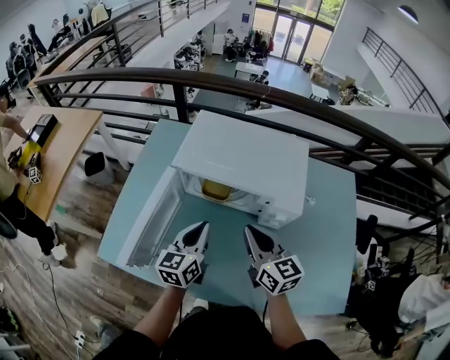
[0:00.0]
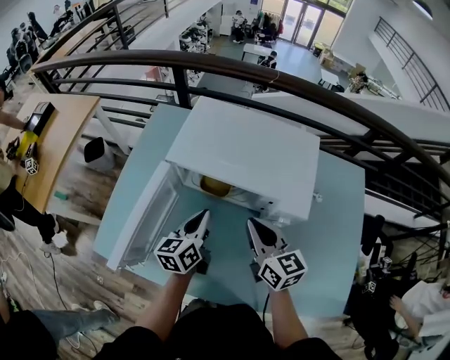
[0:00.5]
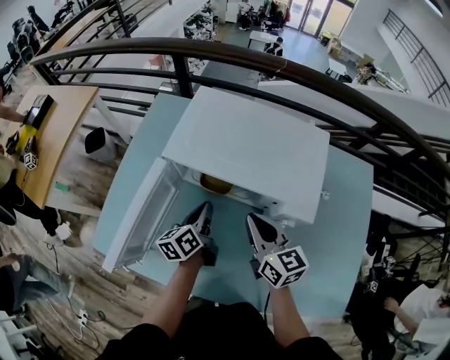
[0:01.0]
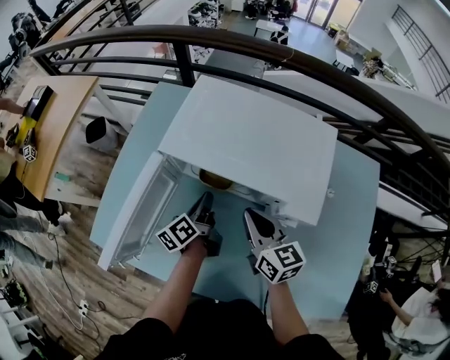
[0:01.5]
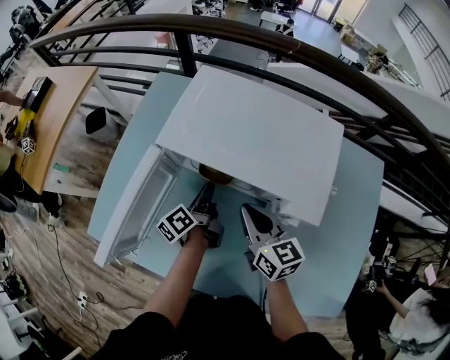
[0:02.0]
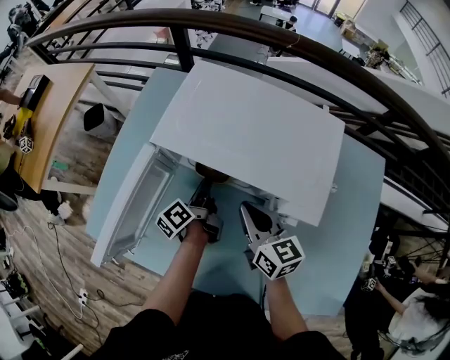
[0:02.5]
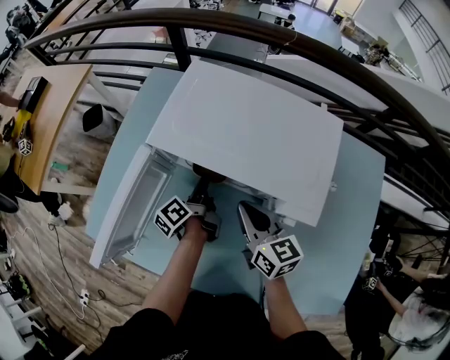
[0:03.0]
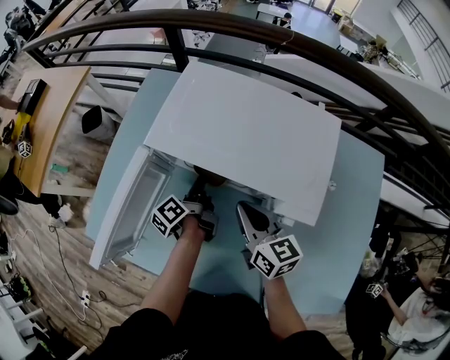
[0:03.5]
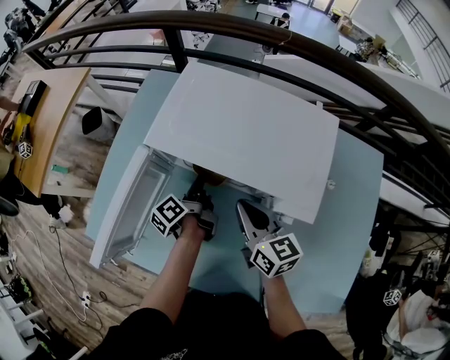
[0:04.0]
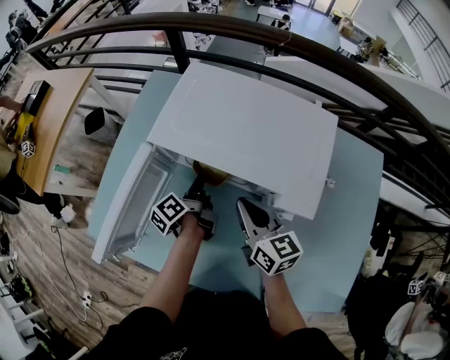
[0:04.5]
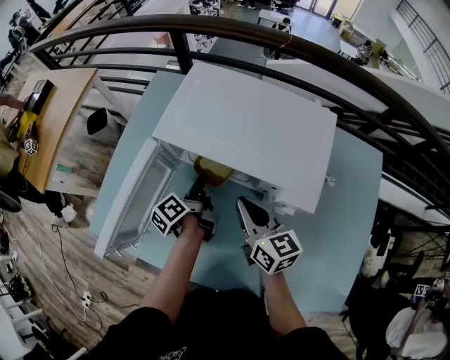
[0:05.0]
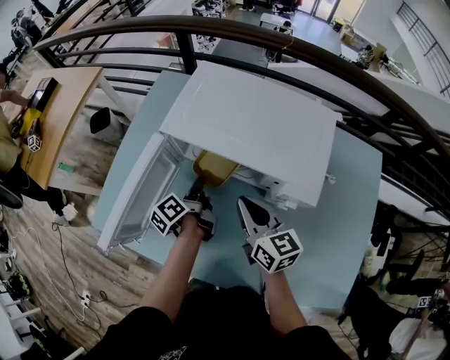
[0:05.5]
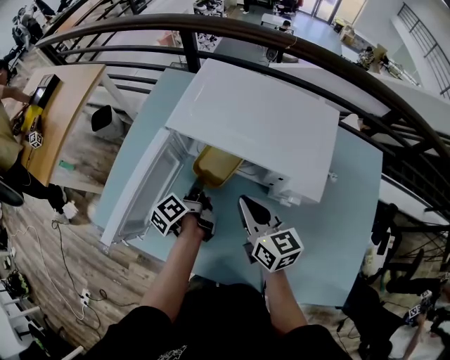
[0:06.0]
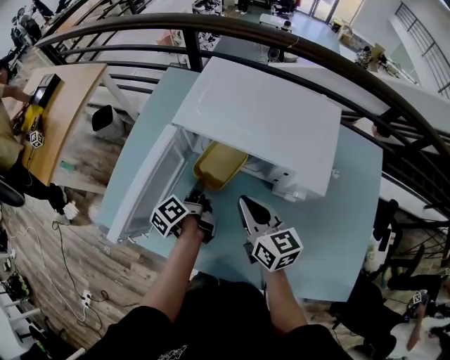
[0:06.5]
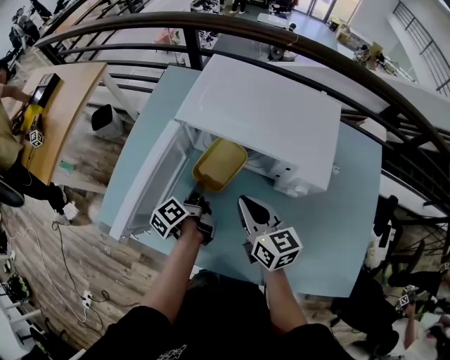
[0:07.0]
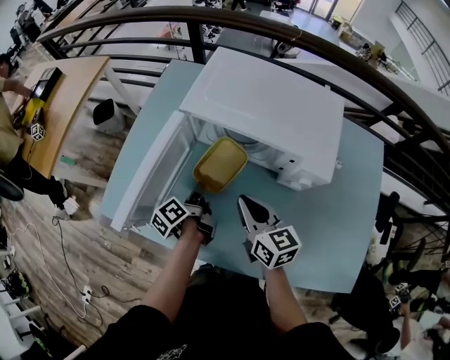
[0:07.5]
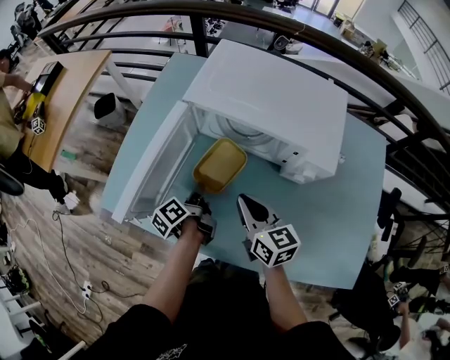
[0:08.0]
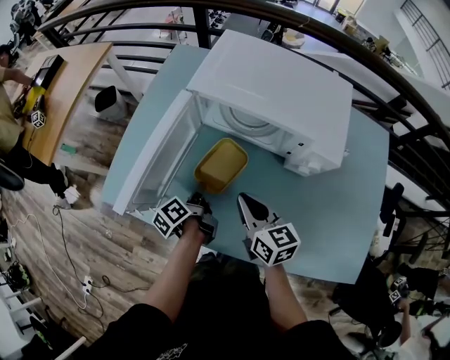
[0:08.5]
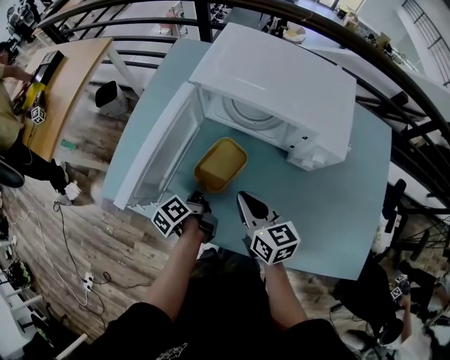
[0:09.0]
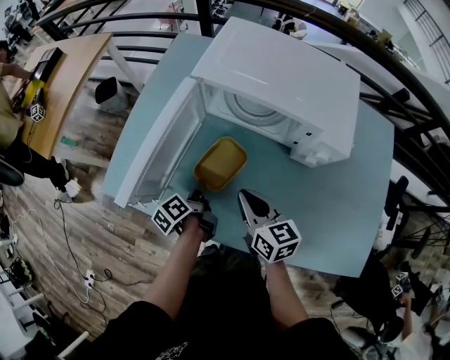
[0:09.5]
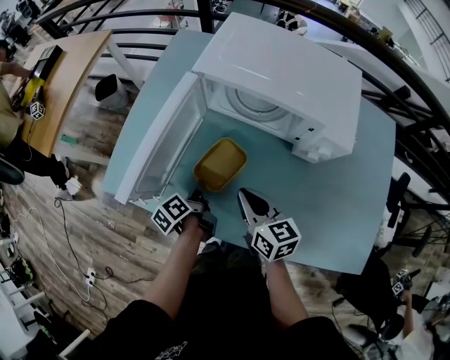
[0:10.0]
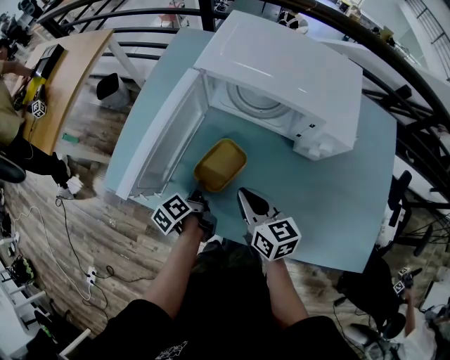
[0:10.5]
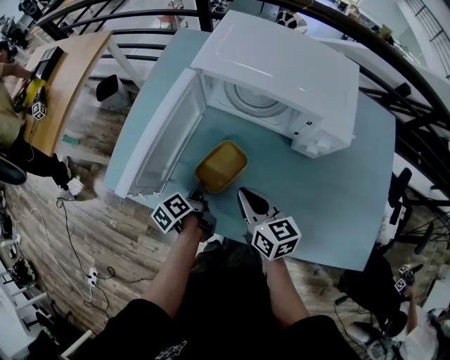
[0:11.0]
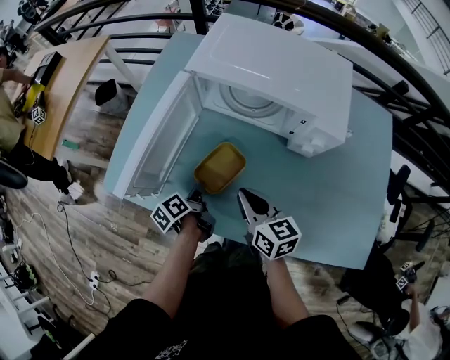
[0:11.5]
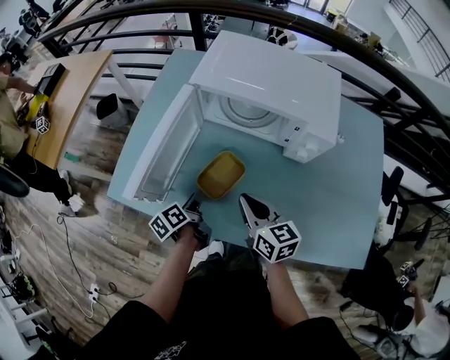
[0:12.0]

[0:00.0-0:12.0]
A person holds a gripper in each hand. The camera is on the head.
0:00.0 to 0:02.0: The grippers both shift downward and forward by about 15 cm. The left gripper rolls counterclockwise, seen from behind, by about 50 degrees.
0:02.0 to 0:04.0: The grippers make only small movements.
0:04.0 to 0:06.0: The left gripper moves backward, roughly 5 cm. The right gripper ends up about 5 cm from where it was.
0:06.0 to 0:08.0: The grippers both shift backward and to the left by roughly 10 cm.
0:08.0 to 0:10.0: The right gripper moves approximately 5 cm. Meanwhile the left gripper heads backward, covering approximately 5 cm.
0:10.0 to 0:12.0: The grippers make only small movements.

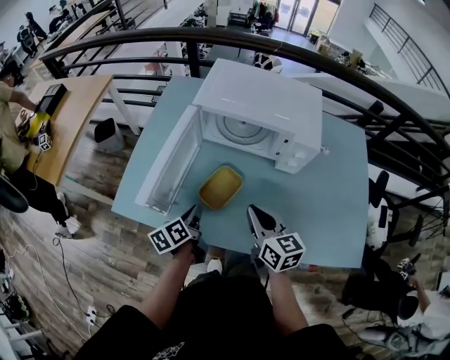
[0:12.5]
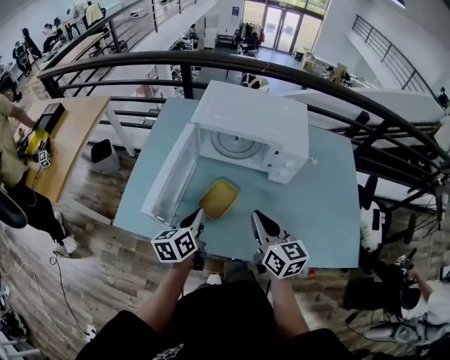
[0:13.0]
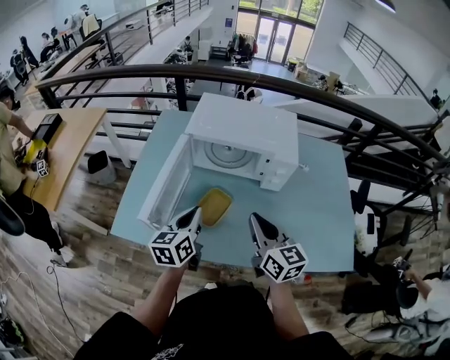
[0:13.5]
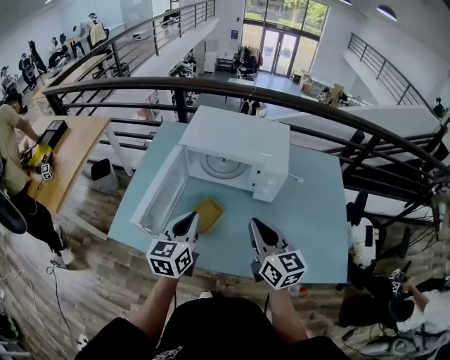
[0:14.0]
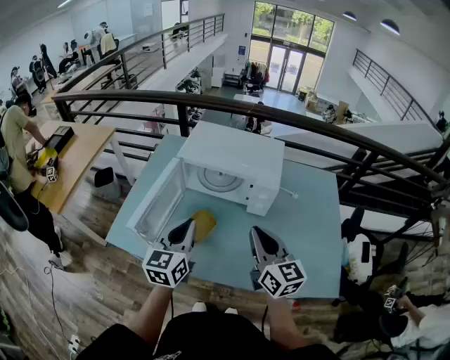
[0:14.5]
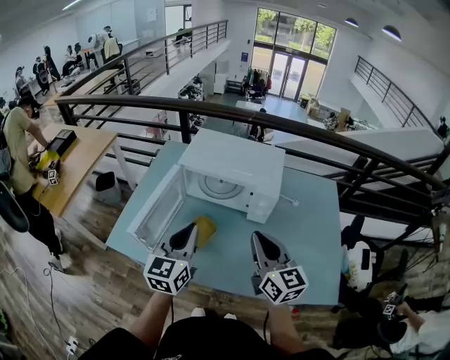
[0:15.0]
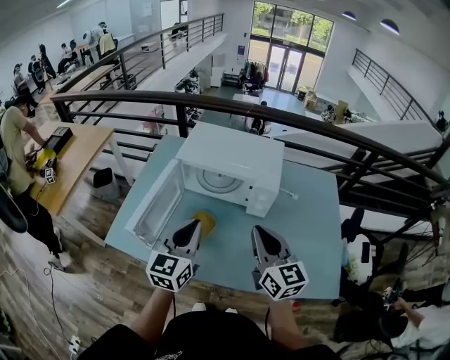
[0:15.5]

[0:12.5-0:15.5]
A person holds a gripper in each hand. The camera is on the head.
0:12.5 to 0:14.0: The left gripper heads upward, covering some 20 cm, and twists approximately 40 degrees clockwise, seen from behind. Meanwhile the right gripper shifts roughly 15 cm upward and to the right.
0:14.0 to 0:15.5: The two grippers go roughly 5 cm upward.

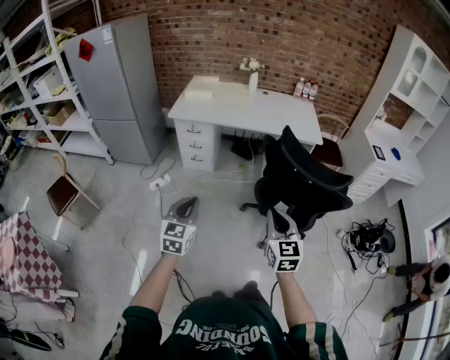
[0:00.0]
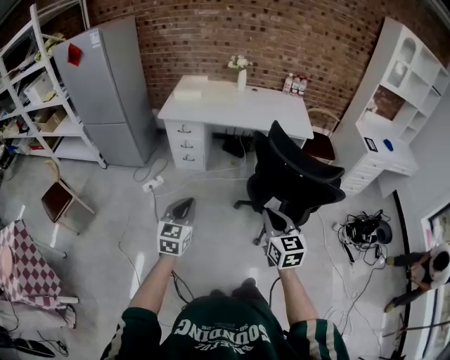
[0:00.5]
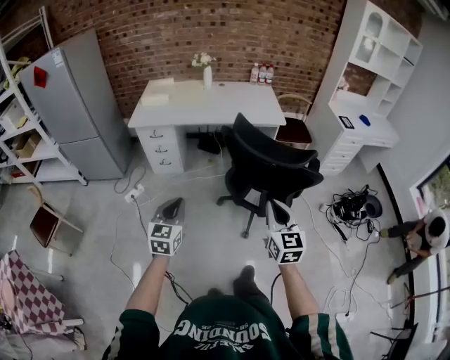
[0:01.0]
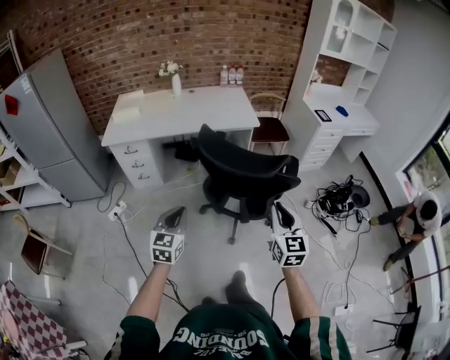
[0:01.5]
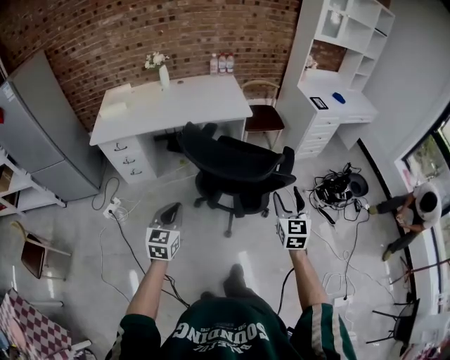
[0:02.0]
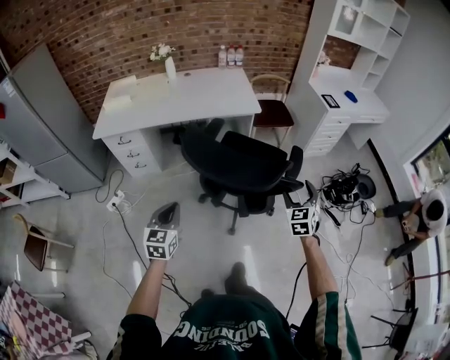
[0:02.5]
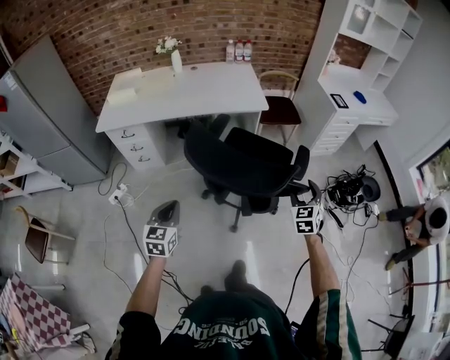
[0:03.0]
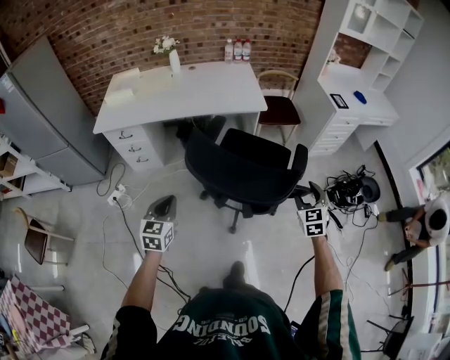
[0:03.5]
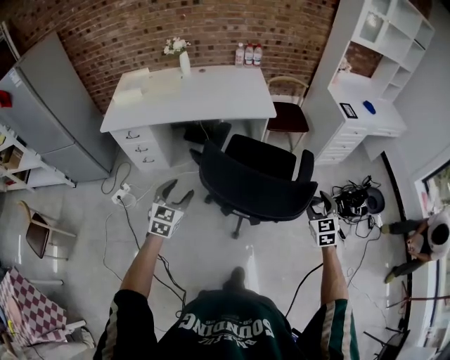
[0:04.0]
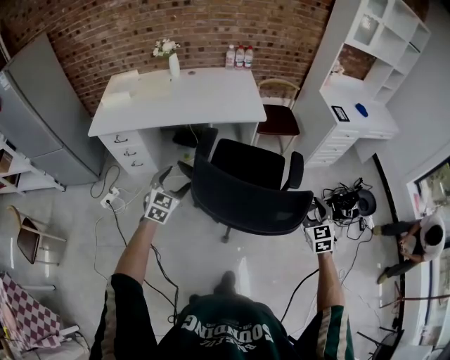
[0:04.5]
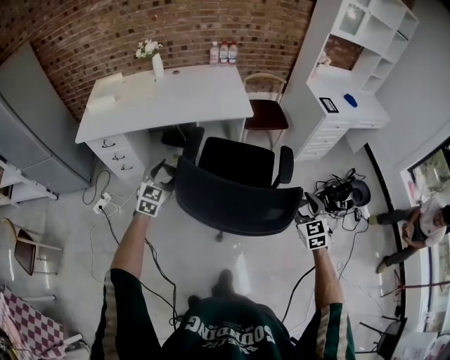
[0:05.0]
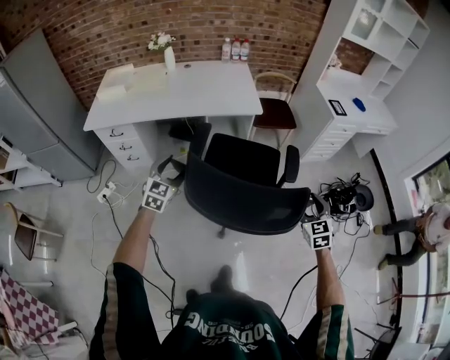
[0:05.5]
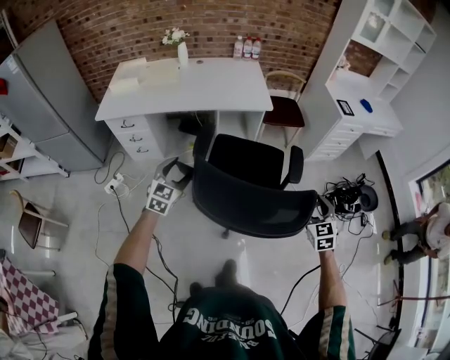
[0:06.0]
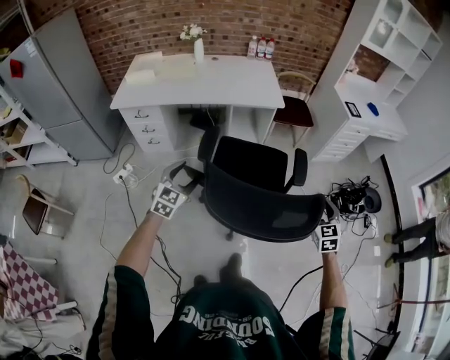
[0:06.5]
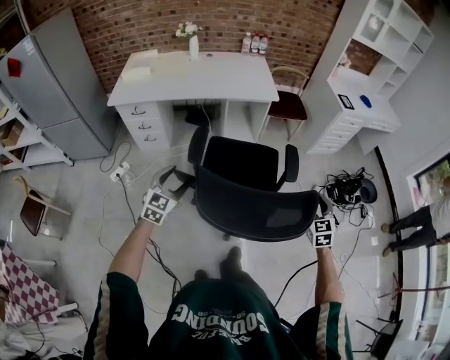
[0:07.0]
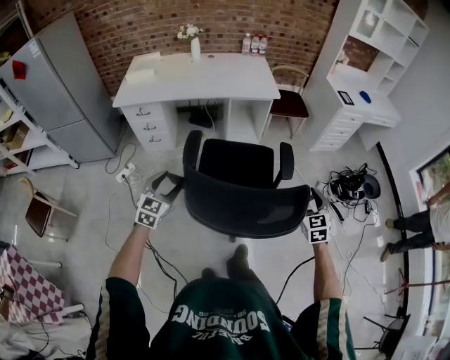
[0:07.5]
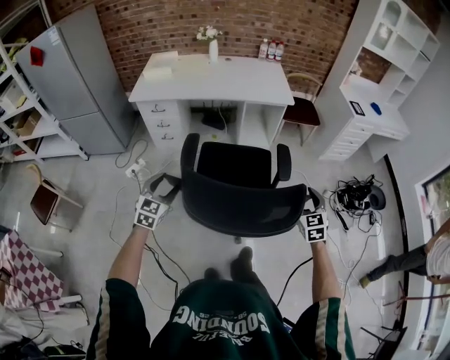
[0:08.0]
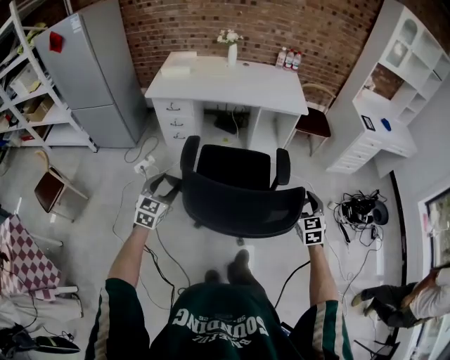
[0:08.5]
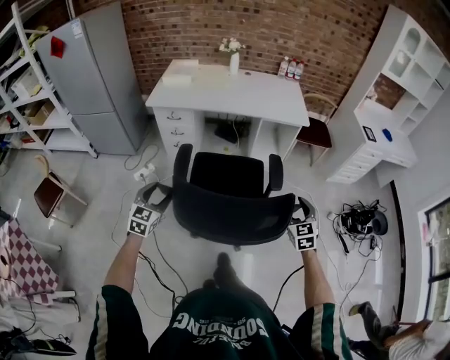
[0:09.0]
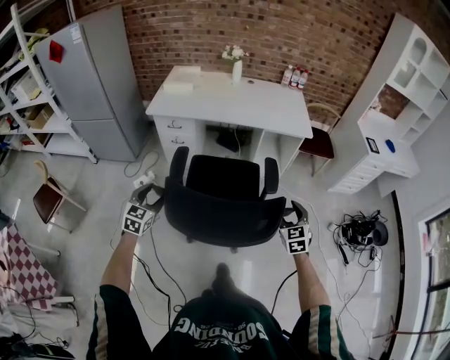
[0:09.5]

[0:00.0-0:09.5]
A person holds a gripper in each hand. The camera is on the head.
0:00.0 to 0:02.0: The right gripper is displaced to the right by approximately 30 cm, turns by approximately 30 degrees, and opens its fingers. The left gripper goes roughly 25 cm to the right and forward.
0:02.0 to 0:04.0: The left gripper travels forward by roughly 15 cm, and opens up. The right gripper heads forward, downward and to the right, covering some 20 cm.
0:04.0 to 0:05.5: The left gripper goes roughly 10 cm forward.
0:05.5 to 0:07.5: The right gripper is displaced backward and to the left by some 20 cm. The left gripper moves backward, some 25 cm.
0:07.5 to 0:09.5: The left gripper moves to the left, some 20 cm. The right gripper heads to the left and forward, covering about 20 cm.

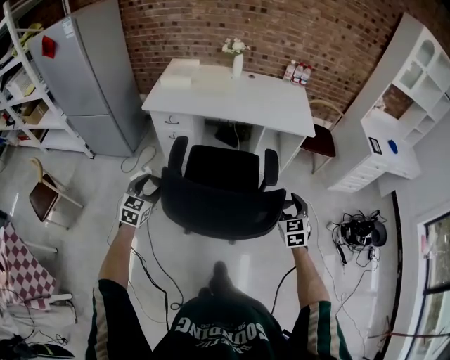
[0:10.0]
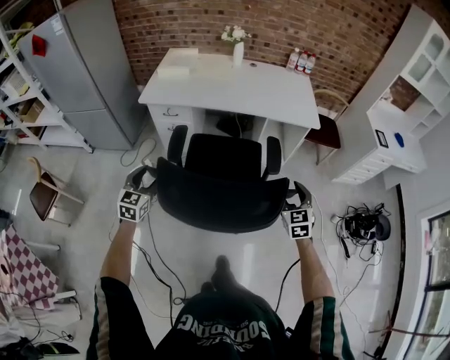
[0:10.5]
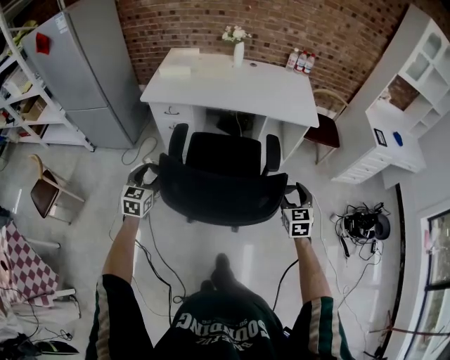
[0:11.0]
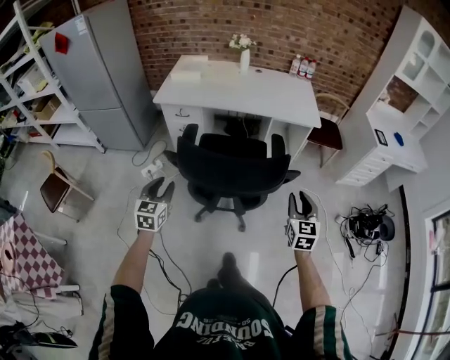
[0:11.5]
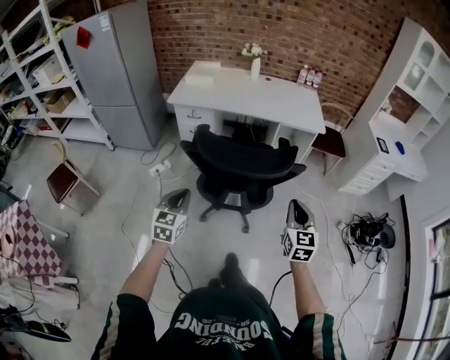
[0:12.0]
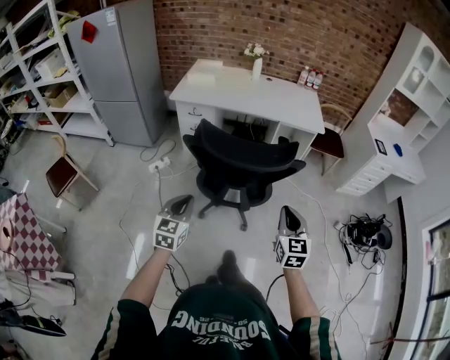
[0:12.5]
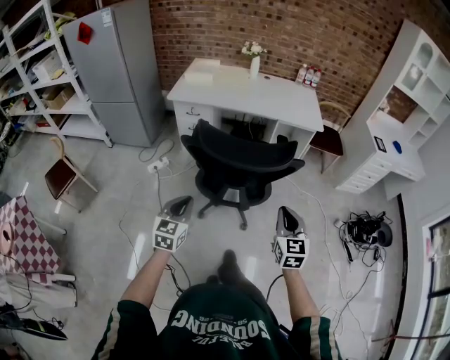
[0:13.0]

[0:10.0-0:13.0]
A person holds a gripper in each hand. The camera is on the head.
0:10.0 to 0:11.5: Both grippers move backward, some 10 cm. The right gripper closes its fingers.
0:11.5 to 0:13.0: The right gripper travels backward and to the left by about 15 cm. The left gripper moves backward and to the right, approximately 15 cm, and closes its fingers.
